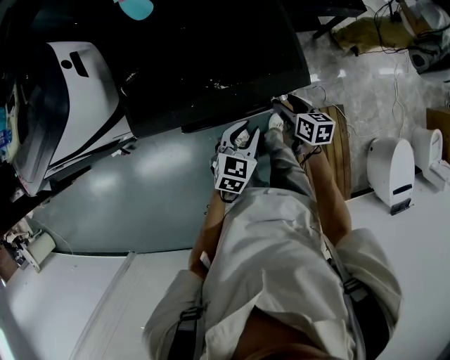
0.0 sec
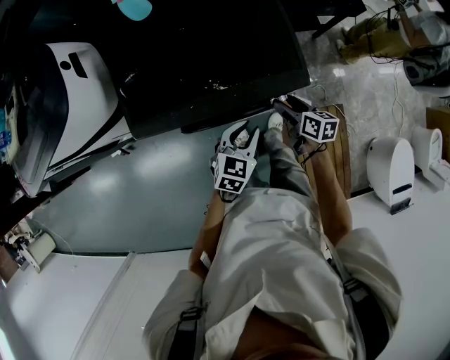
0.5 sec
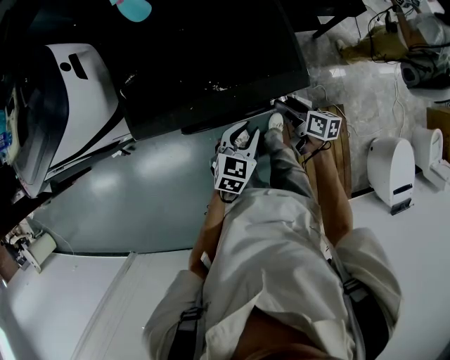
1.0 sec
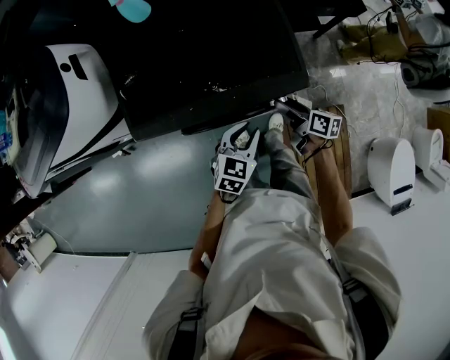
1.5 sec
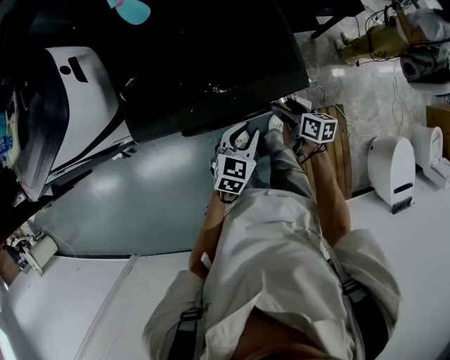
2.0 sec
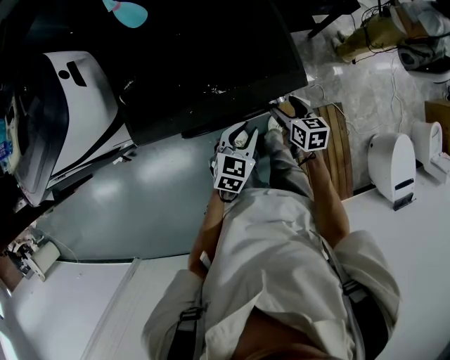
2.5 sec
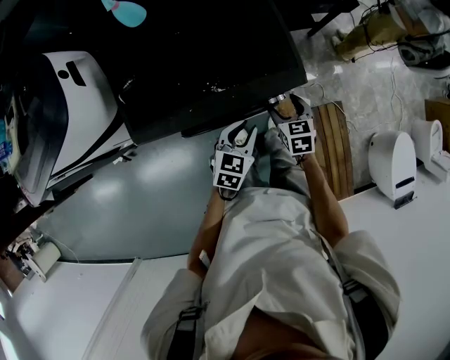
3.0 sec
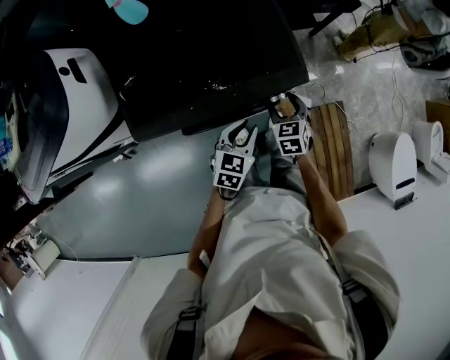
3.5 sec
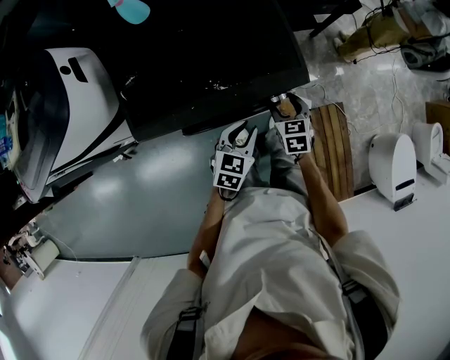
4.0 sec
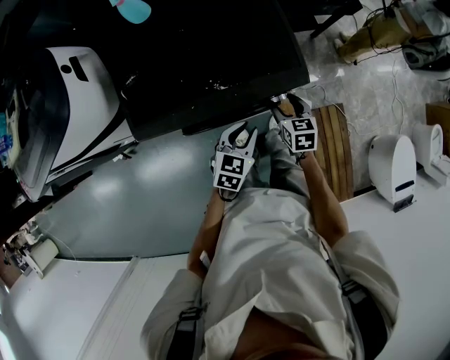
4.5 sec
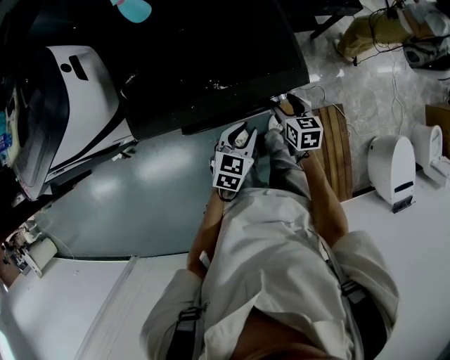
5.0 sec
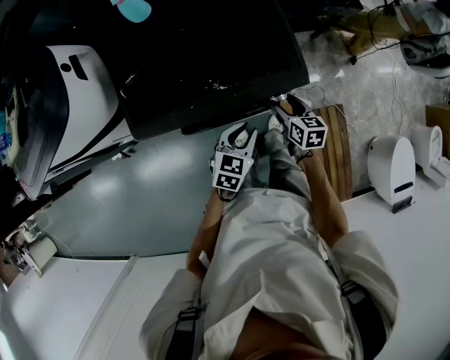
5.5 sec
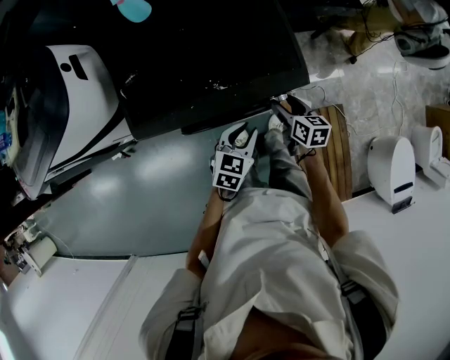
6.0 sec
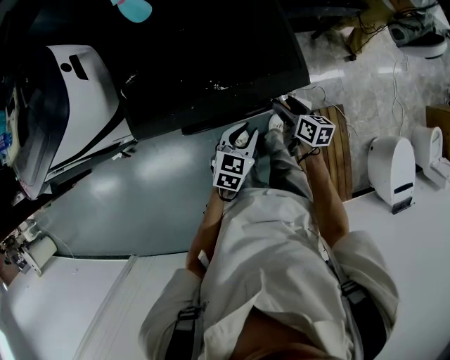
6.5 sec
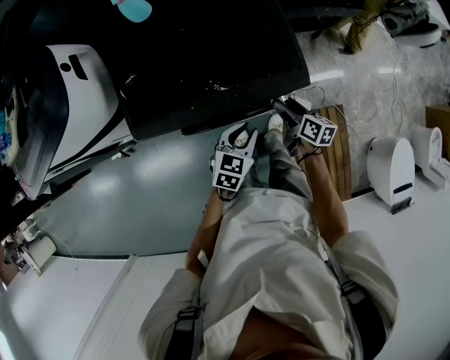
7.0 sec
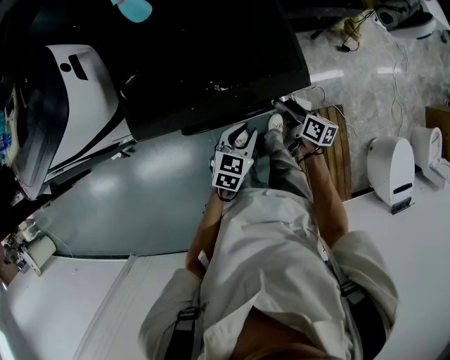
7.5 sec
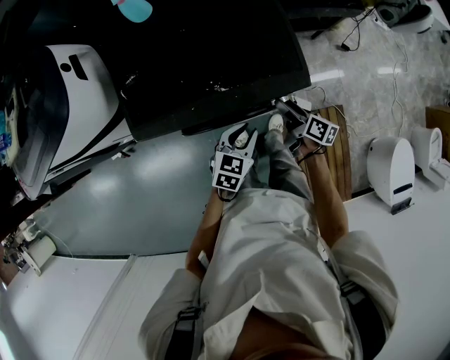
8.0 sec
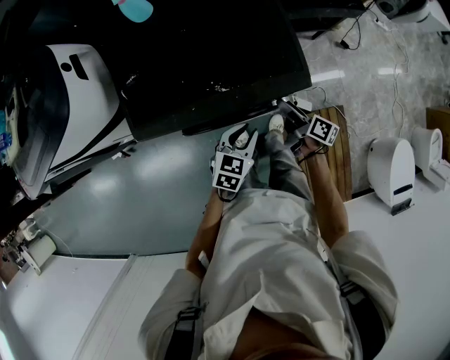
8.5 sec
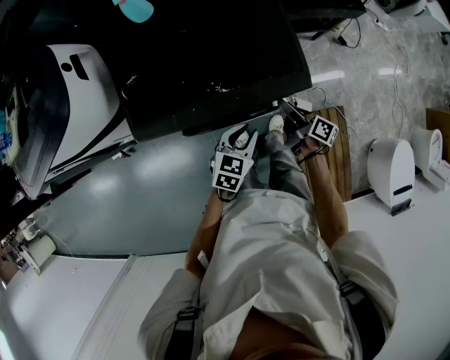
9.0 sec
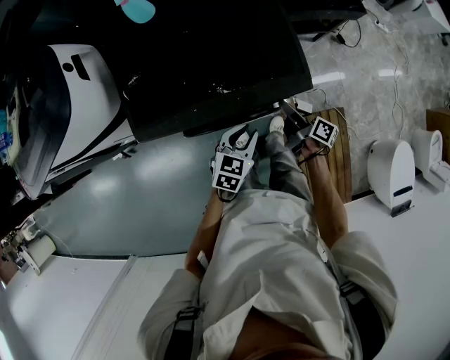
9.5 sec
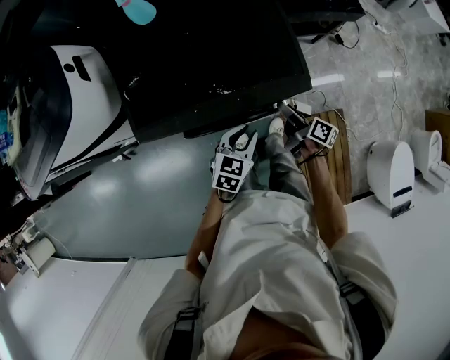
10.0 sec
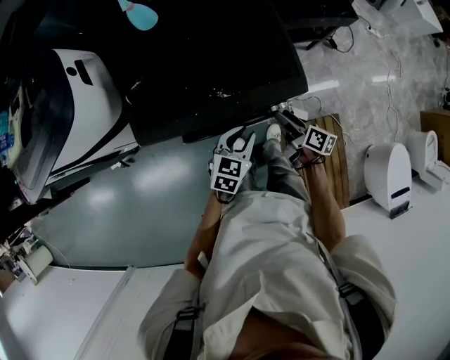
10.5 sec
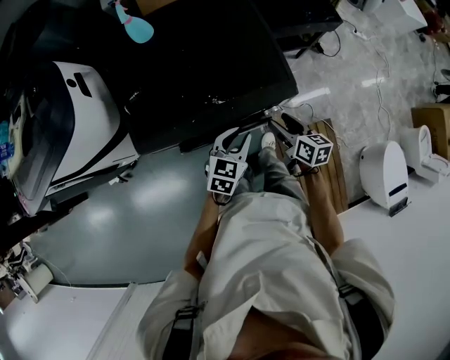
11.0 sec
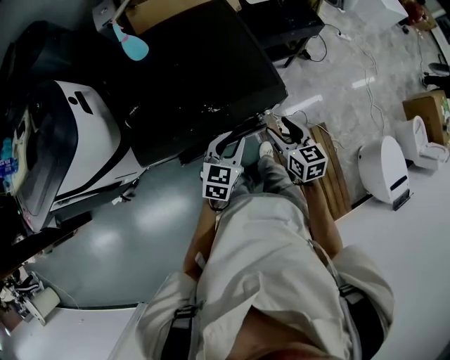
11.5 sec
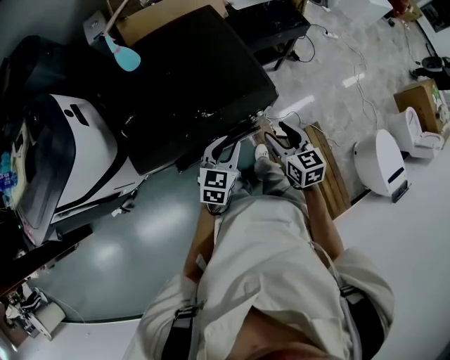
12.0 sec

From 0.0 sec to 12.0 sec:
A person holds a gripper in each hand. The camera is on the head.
From 2.0 sec to 4.0 sec: The right gripper swivels about 50 degrees.
From 4.0 sec to 6.0 sec: The right gripper turns by approximately 30 degrees.
From 6.0 sec to 8.0 sec: The right gripper turns by roughly 30 degrees.
From 8.0 sec to 10.0 sec: The grippers move only a little.
From 10.0 sec to 12.0 sec: The left gripper moves upward, roughly 10 cm; the right gripper heads upward and backward, covering roughly 15 cm, and twists approximately 60 degrees counterclockwise, seen from behind.

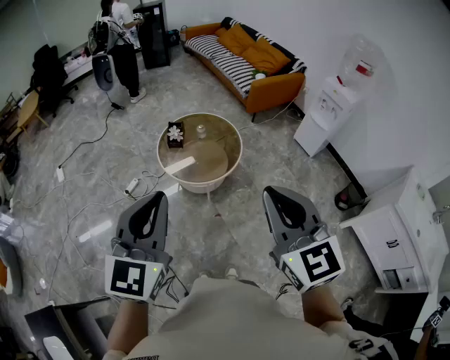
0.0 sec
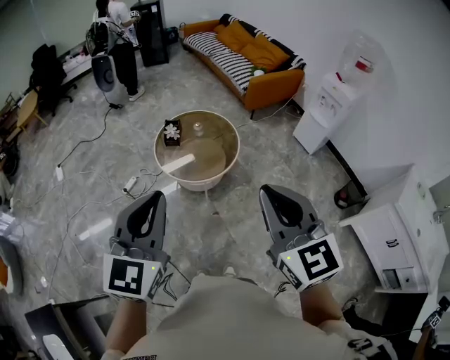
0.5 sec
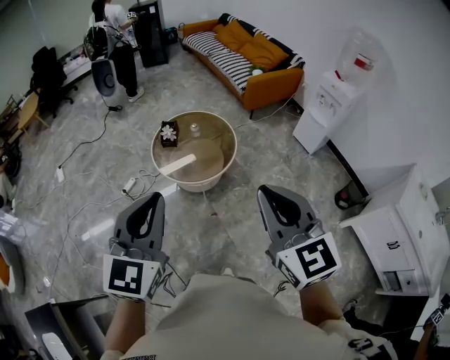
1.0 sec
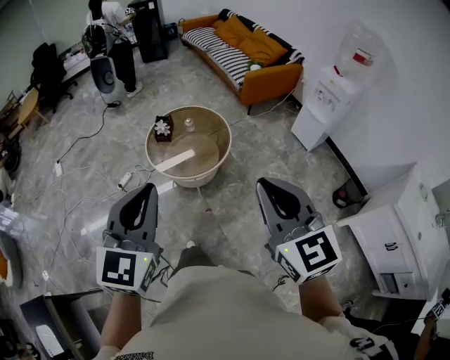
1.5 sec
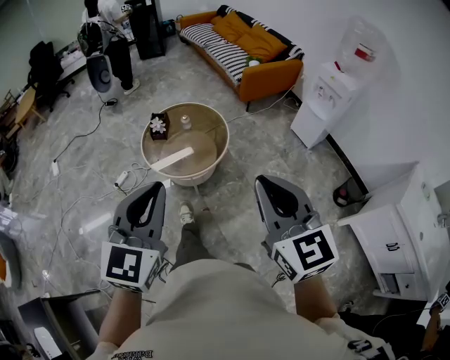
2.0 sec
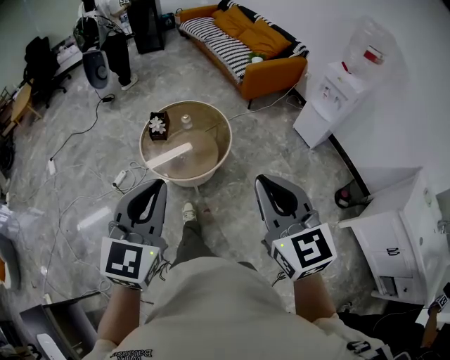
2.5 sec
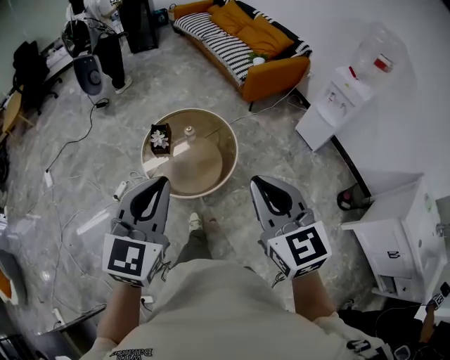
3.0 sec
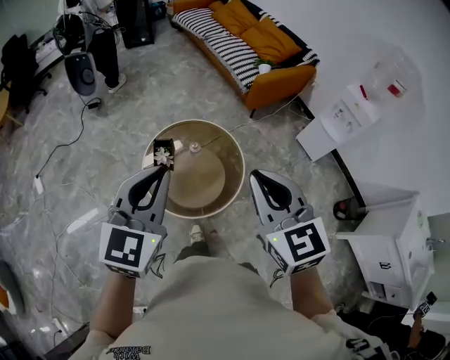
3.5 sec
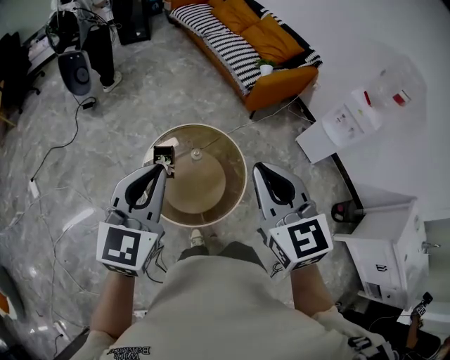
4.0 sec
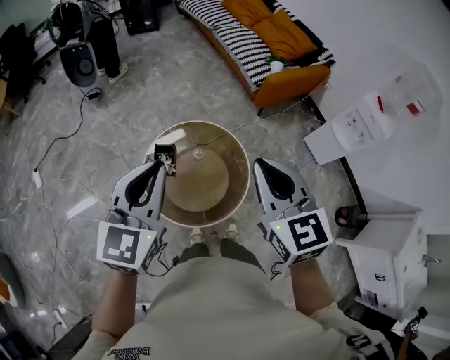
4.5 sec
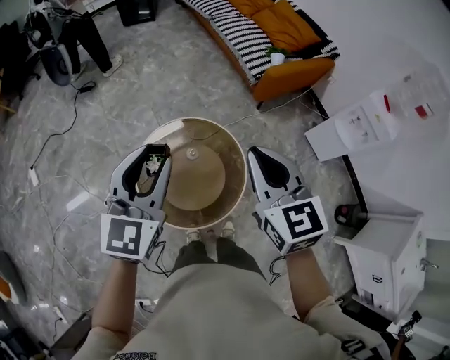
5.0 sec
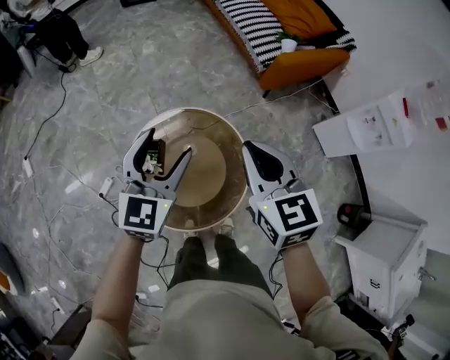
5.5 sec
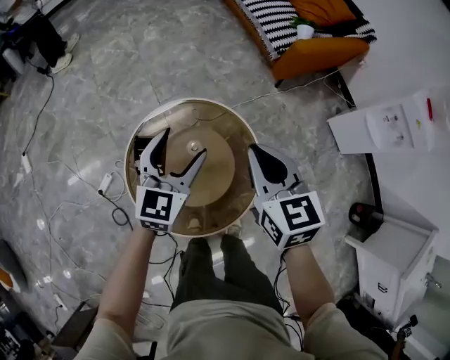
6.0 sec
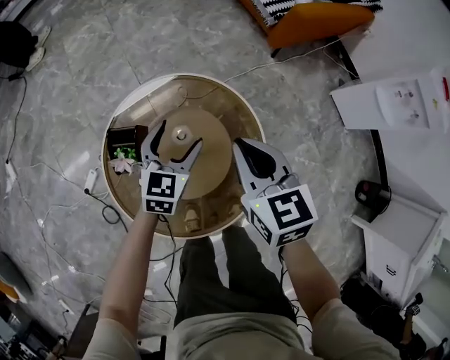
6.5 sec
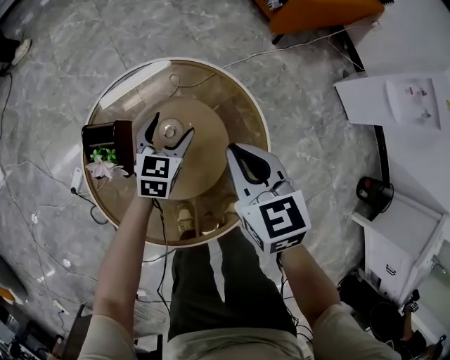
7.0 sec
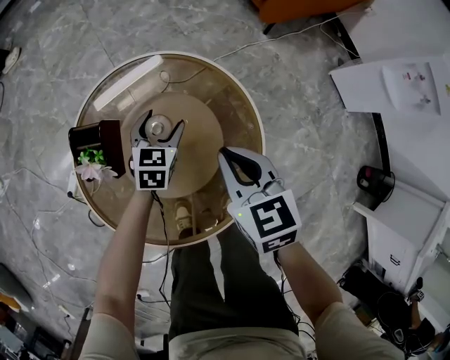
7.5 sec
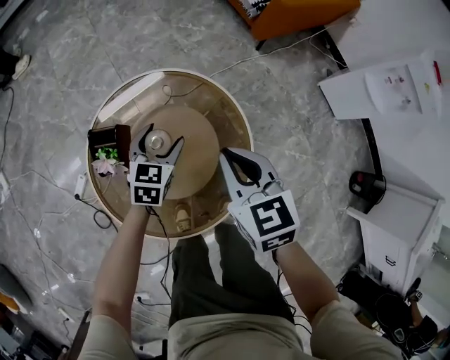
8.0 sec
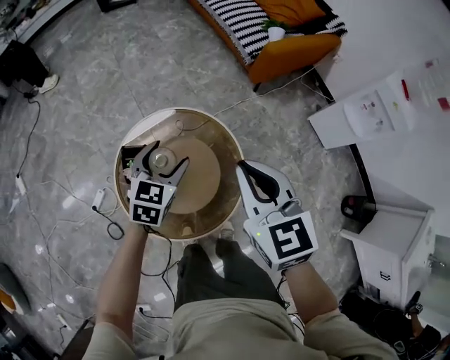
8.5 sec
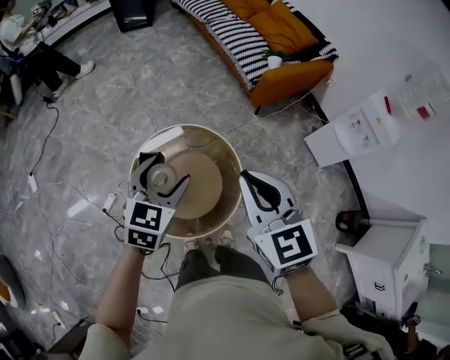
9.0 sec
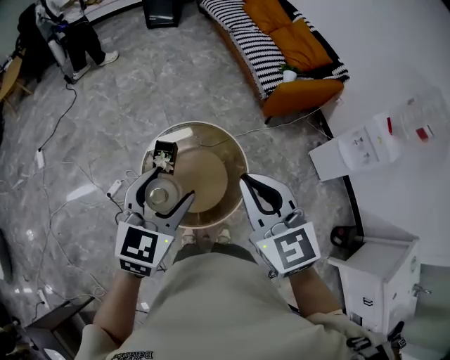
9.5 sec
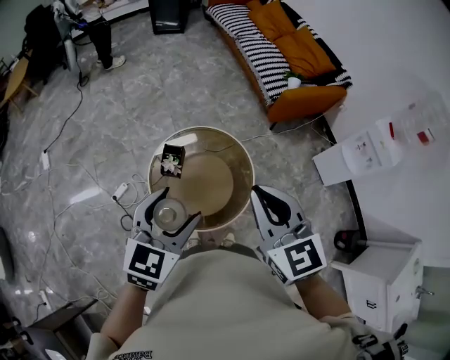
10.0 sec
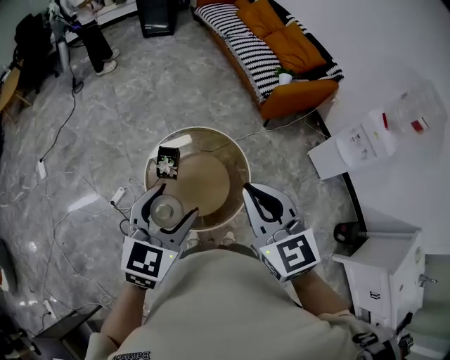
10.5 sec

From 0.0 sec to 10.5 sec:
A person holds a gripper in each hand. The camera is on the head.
From 0.0 sec to 2.0 sec: Both grippers travel together to the right and downward, some 15 cm.
From 2.0 sec to 4.0 sec: The two grippers travel together, forward and to the left, some 50 cm.
From 4.0 sec to 6.5 sec: The grippers both shift downward and forward by about 50 cm. The left gripper opens its fingers. The right gripper swivels roughly 20 degrees.
From 6.5 sec to 8.5 sec: Both grippers travel together upward, approximately 20 cm.
From 8.5 sec to 10.5 sec: The left gripper moves upward and backward, some 40 cm; the right gripper heads upward and backward, covering approximately 25 cm.

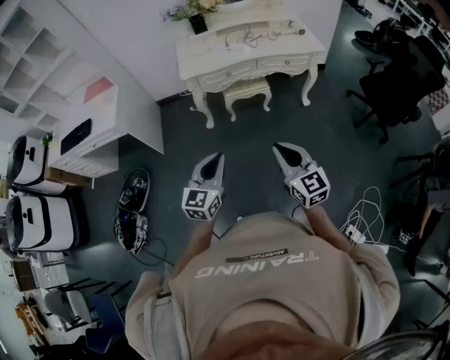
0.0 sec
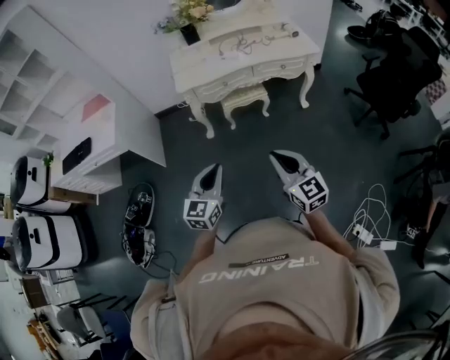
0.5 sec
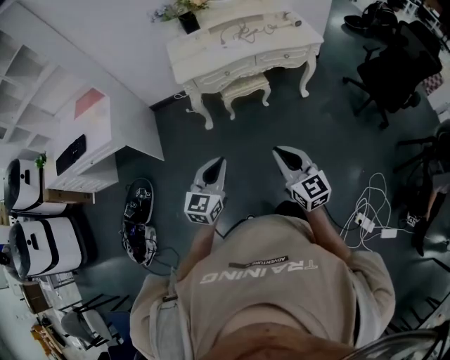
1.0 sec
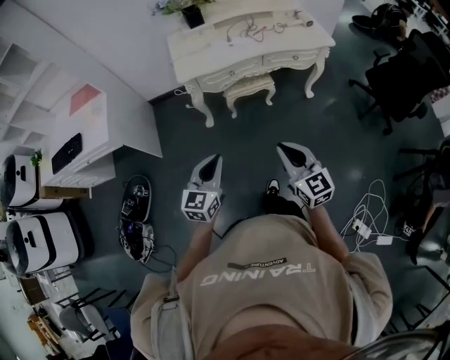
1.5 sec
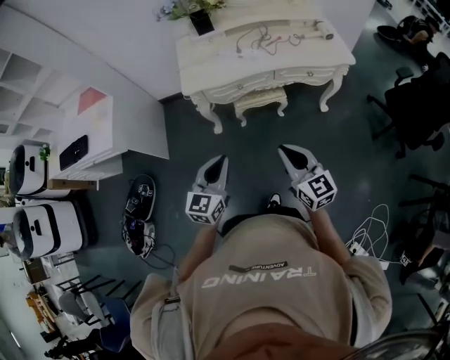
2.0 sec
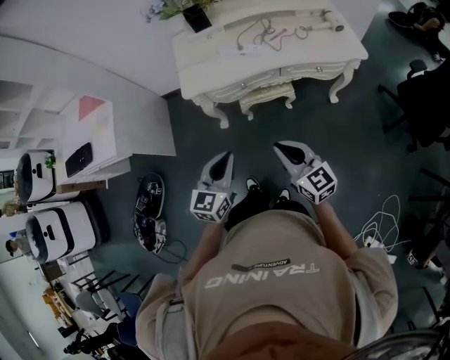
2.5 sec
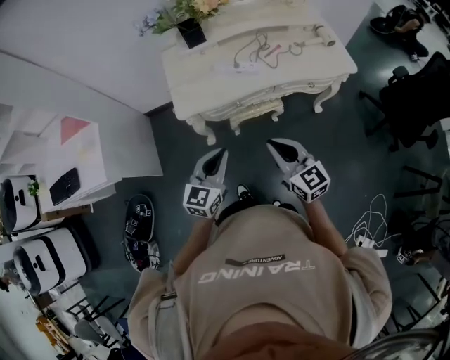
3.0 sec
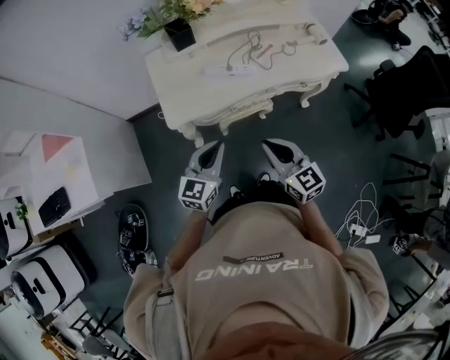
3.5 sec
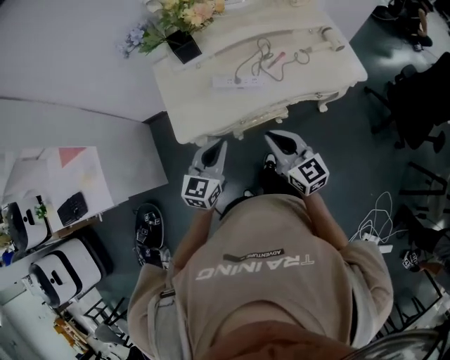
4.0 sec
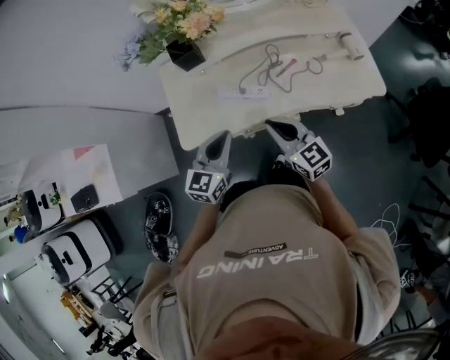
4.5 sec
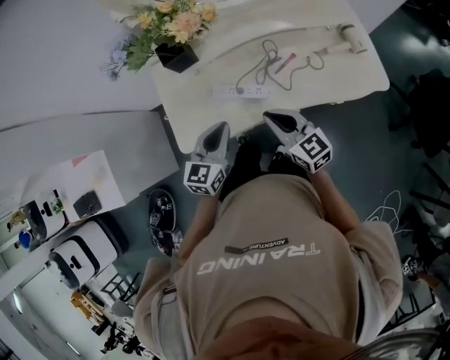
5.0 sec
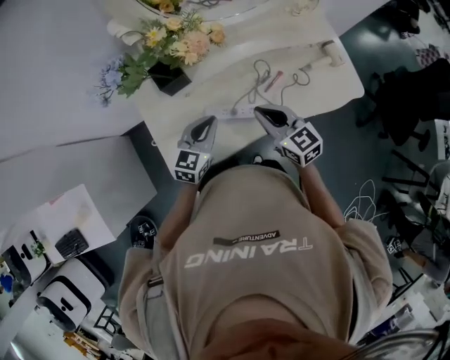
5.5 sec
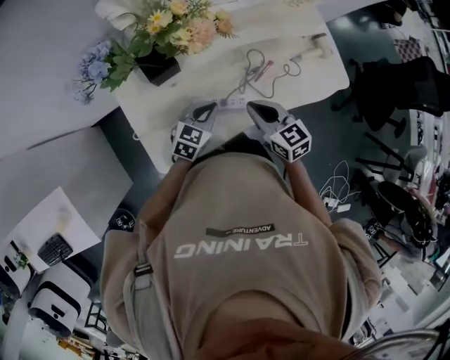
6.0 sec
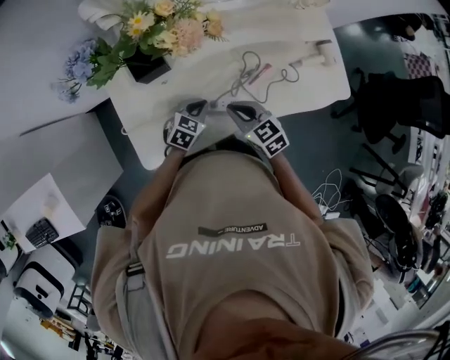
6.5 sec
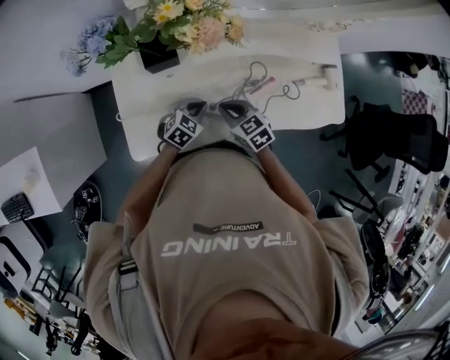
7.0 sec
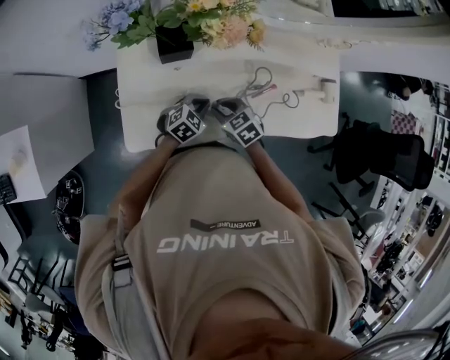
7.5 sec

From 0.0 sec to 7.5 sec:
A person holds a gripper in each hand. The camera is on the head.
From 0.0 sec to 2.0 sec: Both grippers move forward, approximately 30 cm.
From 2.0 sec to 4.0 sec: The two grippers go about 35 cm forward.
From 4.0 sec to 5.5 sec: The grippers both shift forward by some 25 cm.
From 5.5 sec to 7.5 sec: The right gripper travels downward and to the left by roughly 20 cm, points its fingers roughly 30 degrees further downward, and opens up. Meanwhile the left gripper is displaced downward by approximately 15 cm, and rotates roughly 20 degrees.
